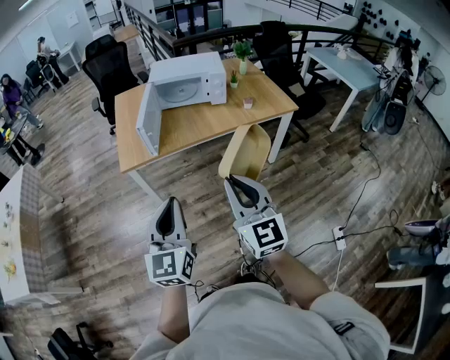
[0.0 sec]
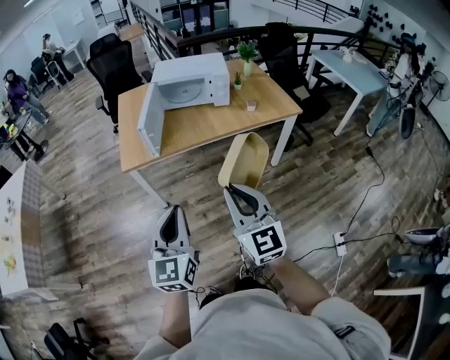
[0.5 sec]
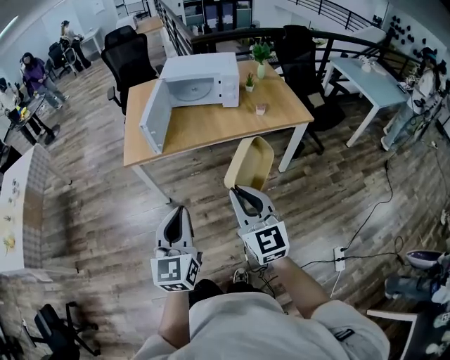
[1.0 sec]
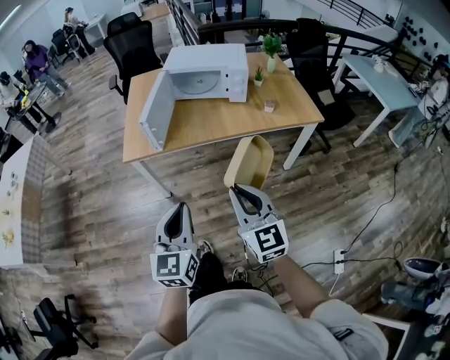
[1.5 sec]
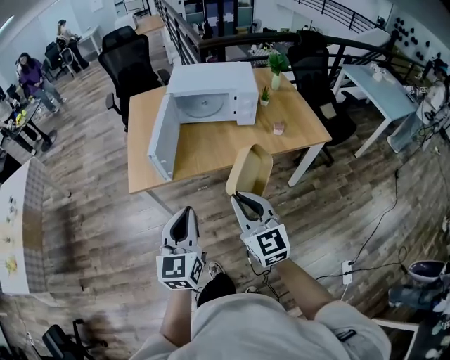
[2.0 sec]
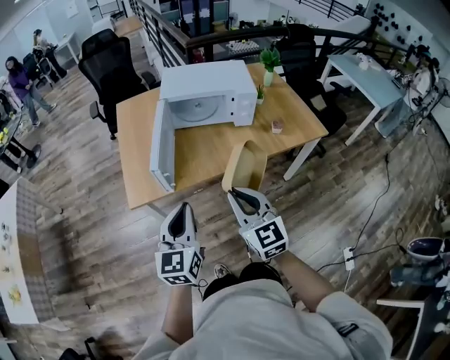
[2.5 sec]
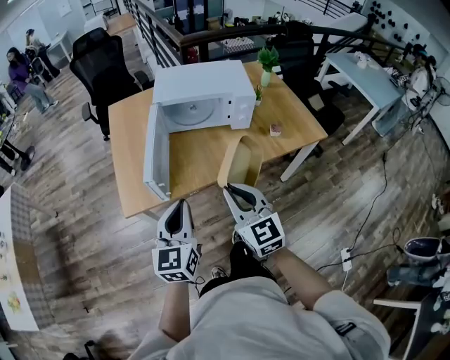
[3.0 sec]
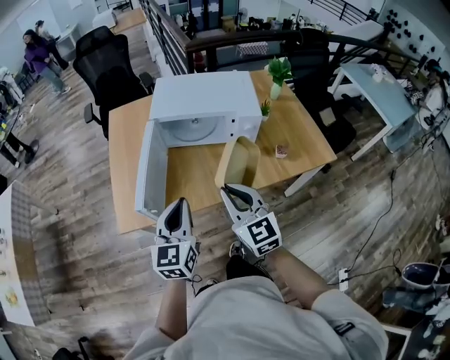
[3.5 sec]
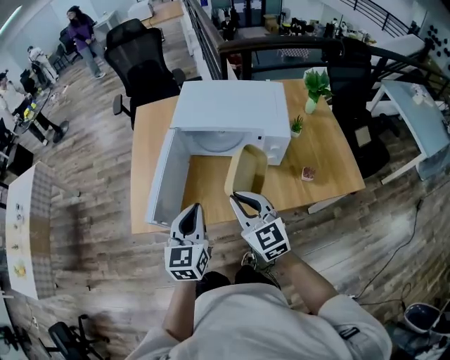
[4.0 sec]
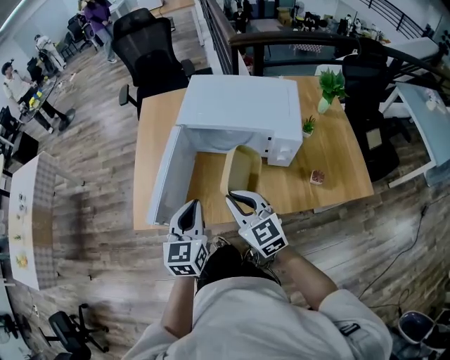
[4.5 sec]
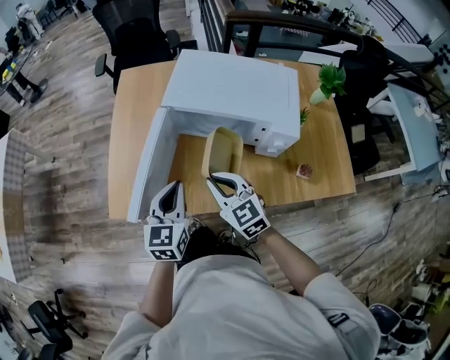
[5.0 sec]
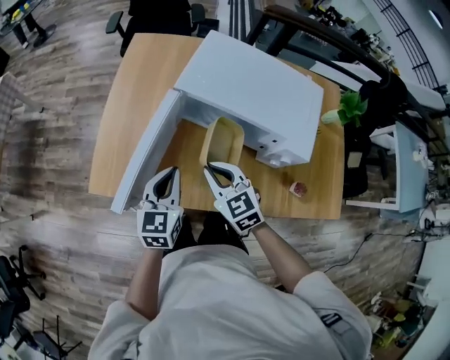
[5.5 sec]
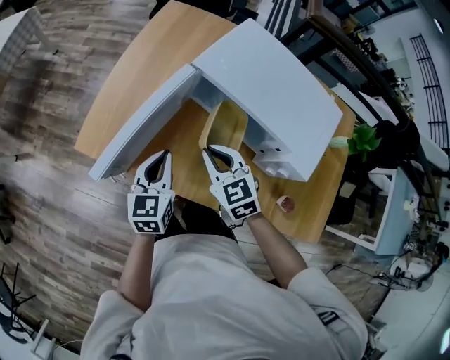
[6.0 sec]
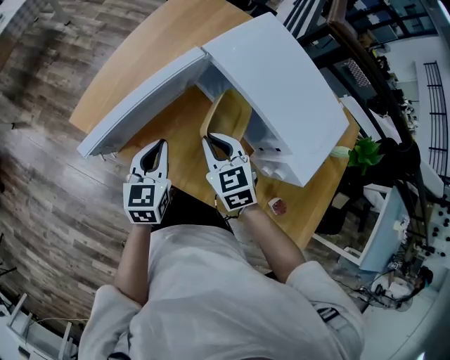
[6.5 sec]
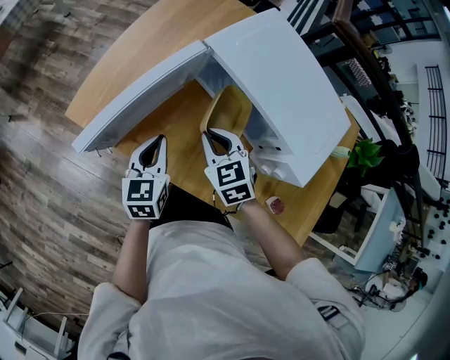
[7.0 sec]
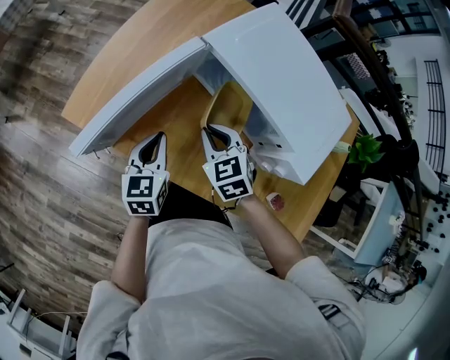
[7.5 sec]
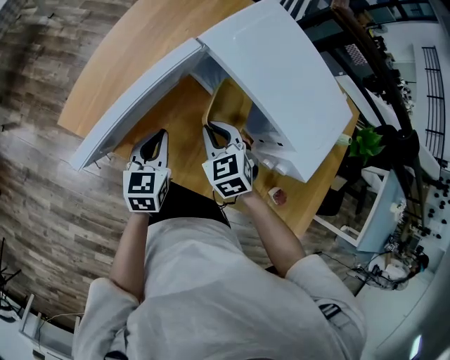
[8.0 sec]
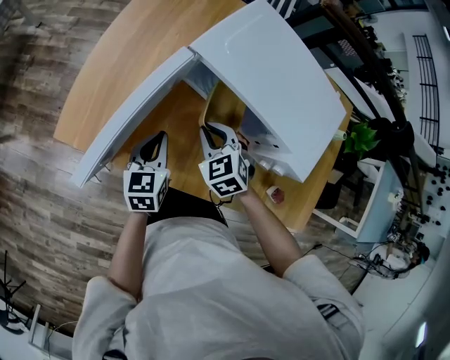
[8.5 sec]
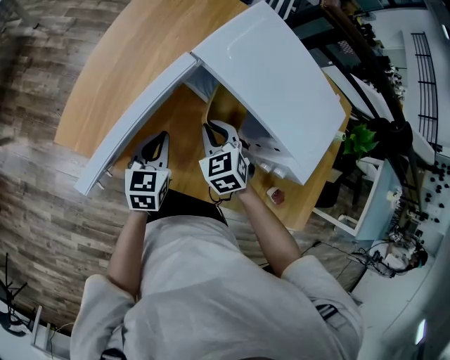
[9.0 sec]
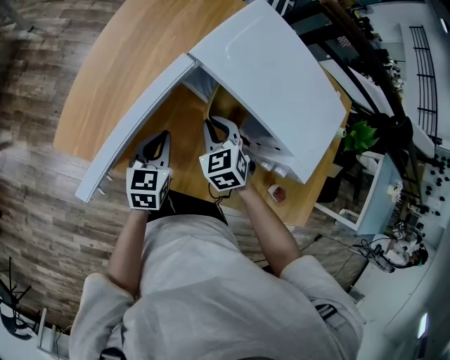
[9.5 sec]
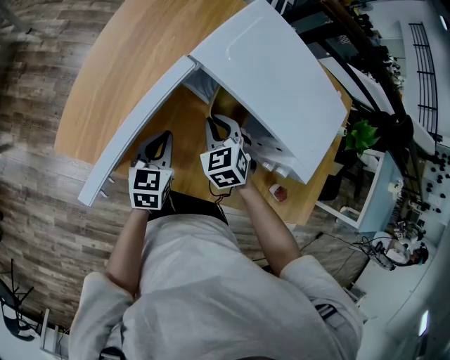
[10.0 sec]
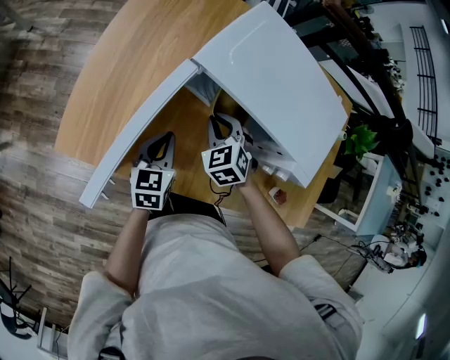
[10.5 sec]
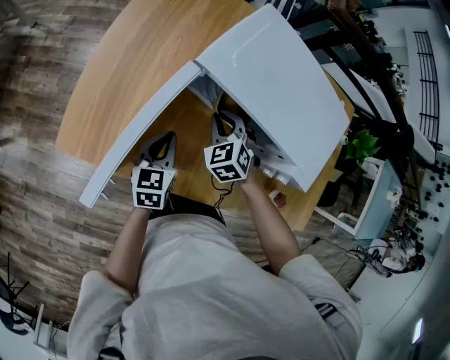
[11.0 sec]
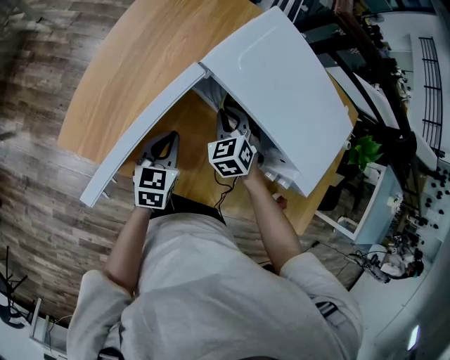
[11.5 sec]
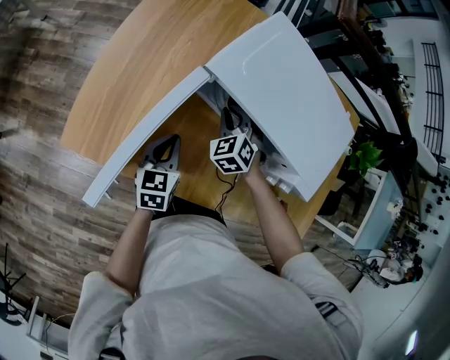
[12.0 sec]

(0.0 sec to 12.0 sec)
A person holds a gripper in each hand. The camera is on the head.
0.0 sec - 2.0 sec: The right gripper shifts about 20 cm forward and downward; the left gripper is displaced forward by approximately 20 cm.
2.0 sec - 4.0 sec: Both grippers move forward, about 30 cm.
4.0 sec - 6.0 sec: The right gripper travels forward and downward by some 20 cm, and rotates about 40 degrees, while the left gripper is displaced downward and forward by about 15 cm, and swivels some 30 degrees.
6.0 sec - 8.0 sec: Both grippers travel together downward, about 5 cm.
8.0 sec - 10.0 sec: The right gripper is displaced forward by some 5 cm.
10.0 sec - 12.0 sec: The right gripper travels forward by about 5 cm.

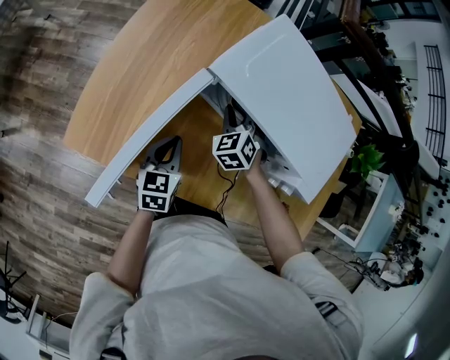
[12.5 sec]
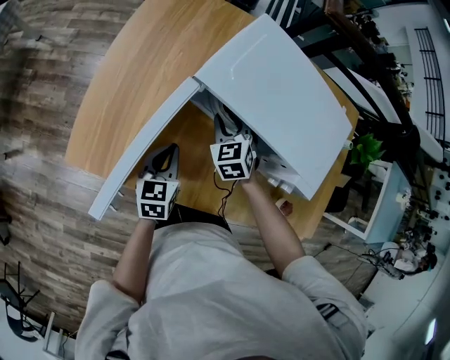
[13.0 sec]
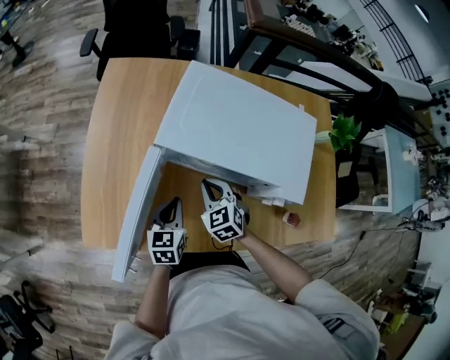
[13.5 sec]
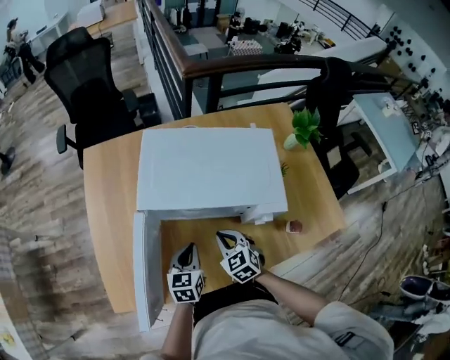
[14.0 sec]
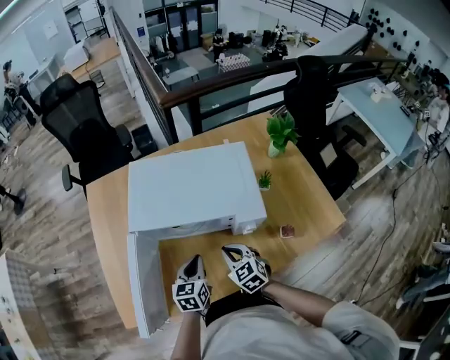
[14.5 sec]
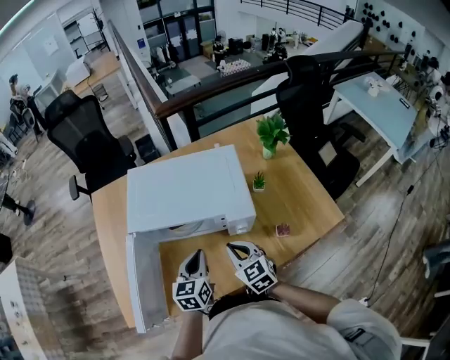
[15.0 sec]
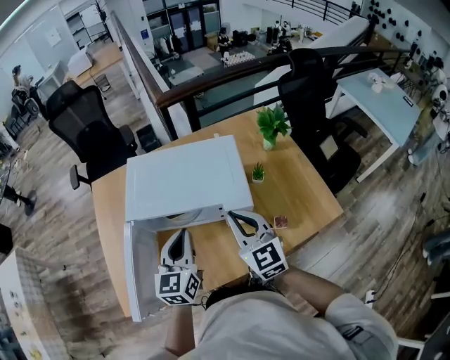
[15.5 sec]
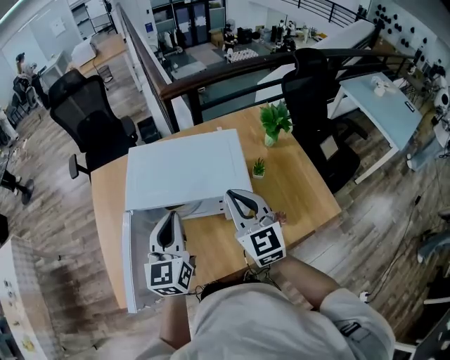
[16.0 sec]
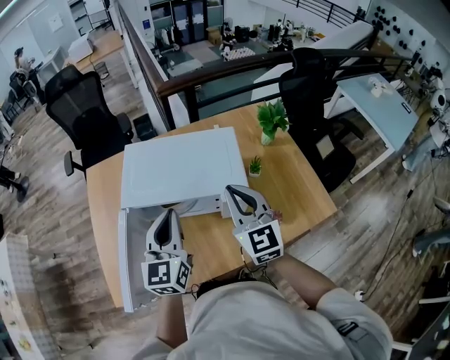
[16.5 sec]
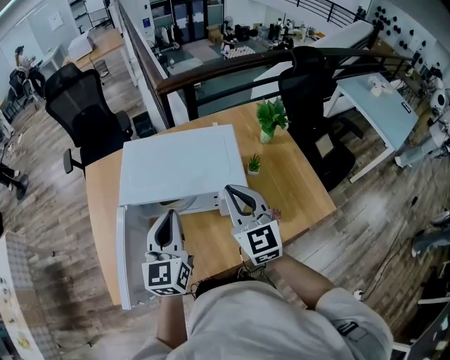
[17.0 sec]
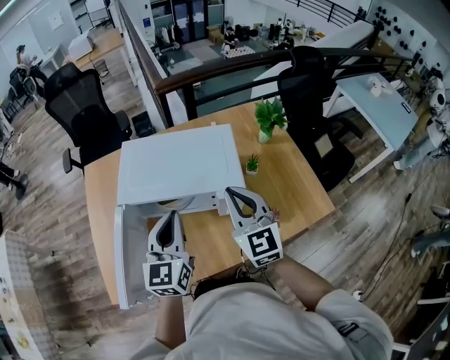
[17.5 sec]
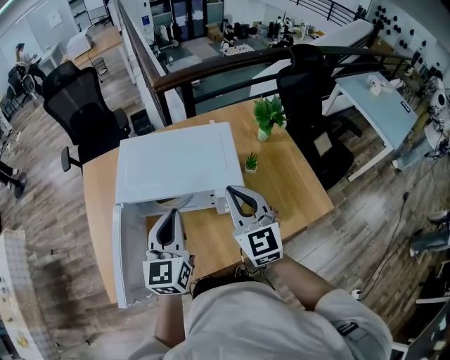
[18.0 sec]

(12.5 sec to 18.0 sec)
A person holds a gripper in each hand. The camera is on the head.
12.5 sec - 14.5 sec: The right gripper shifts approximately 20 cm backward and to the right, and rolls clockwise, seen from behind, by about 40 degrees; the left gripper heads to the right, covering roughly 15 cm, and turns by roughly 30 degrees.
14.5 sec - 16.0 sec: The grippers both shift upward by some 25 cm. The left gripper changes its angle by some 30 degrees; the right gripper points its fingers some 30 degrees further upward.
16.0 sec - 18.0 sec: The grippers move only a little.

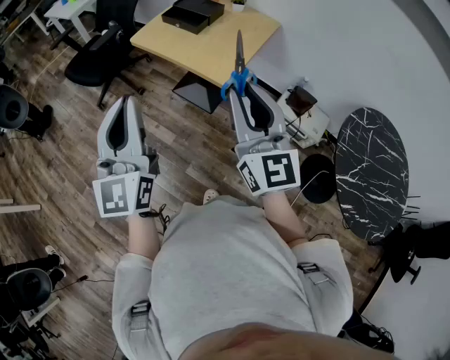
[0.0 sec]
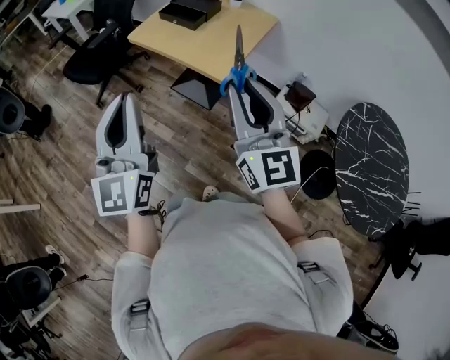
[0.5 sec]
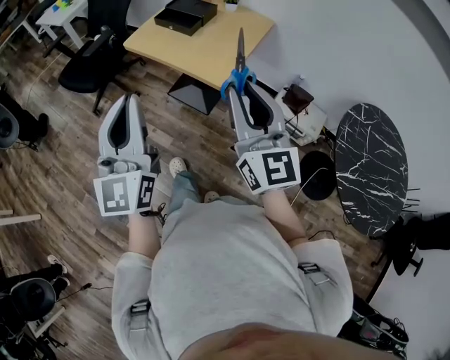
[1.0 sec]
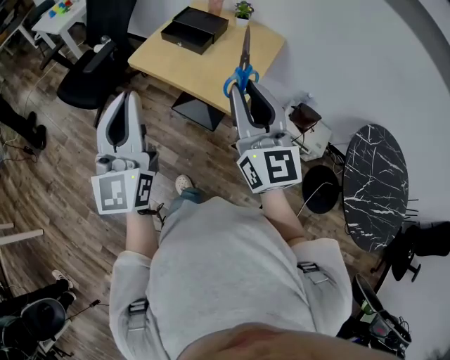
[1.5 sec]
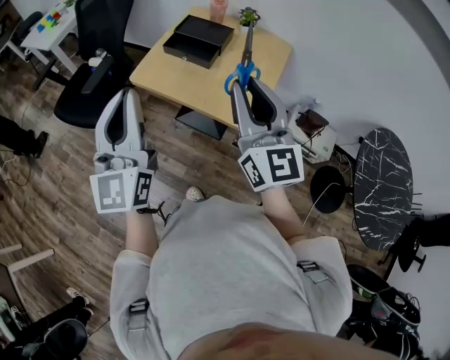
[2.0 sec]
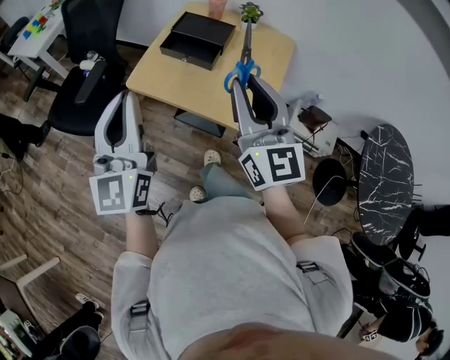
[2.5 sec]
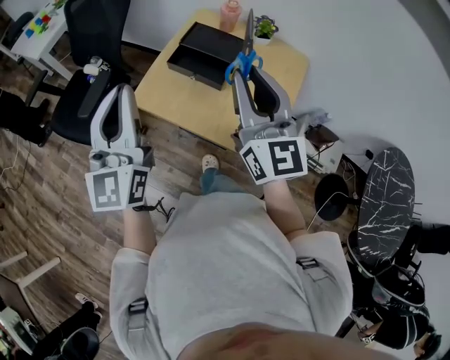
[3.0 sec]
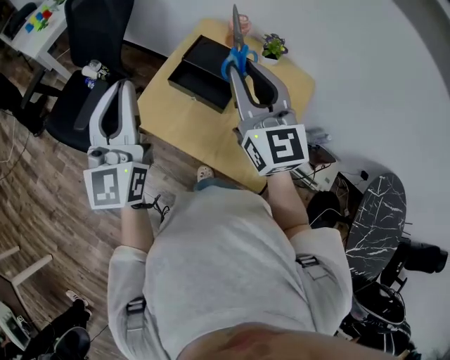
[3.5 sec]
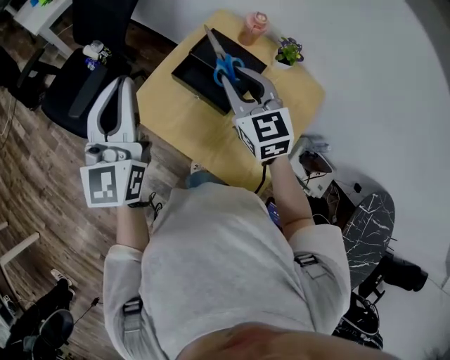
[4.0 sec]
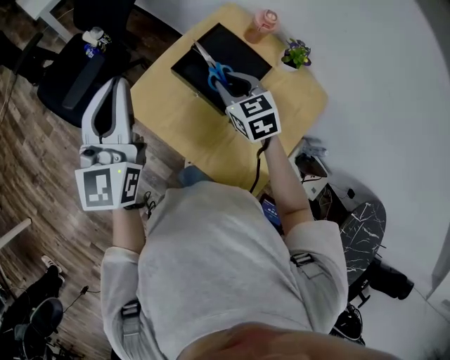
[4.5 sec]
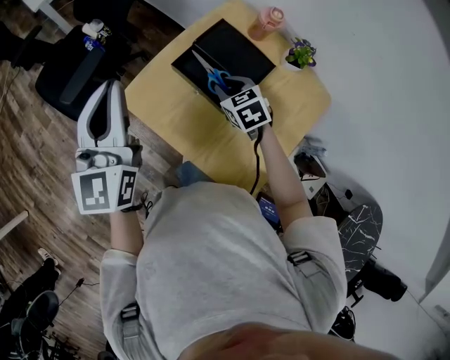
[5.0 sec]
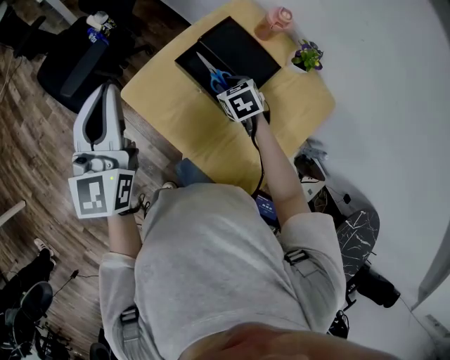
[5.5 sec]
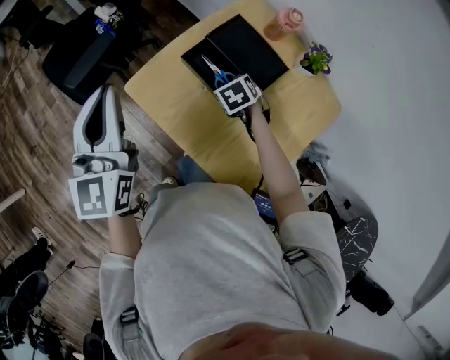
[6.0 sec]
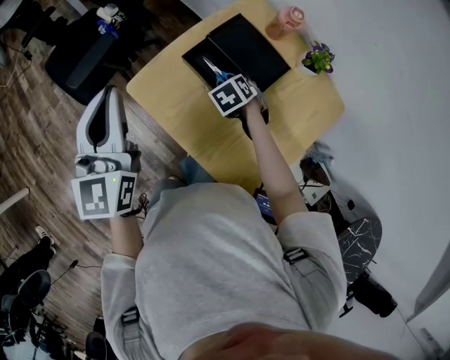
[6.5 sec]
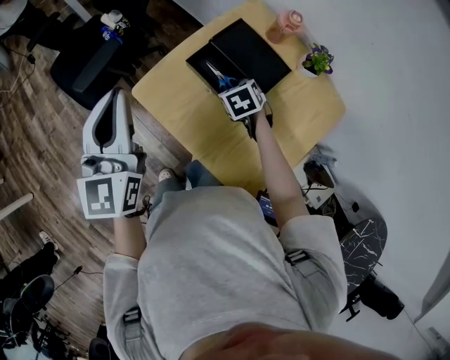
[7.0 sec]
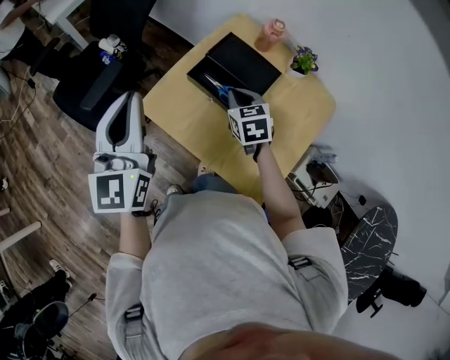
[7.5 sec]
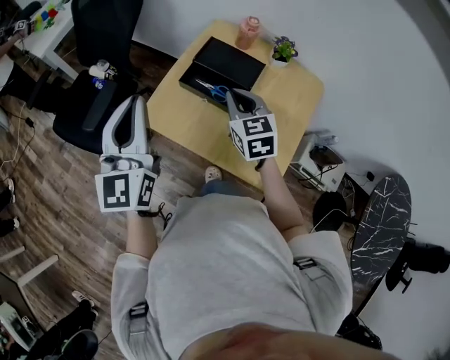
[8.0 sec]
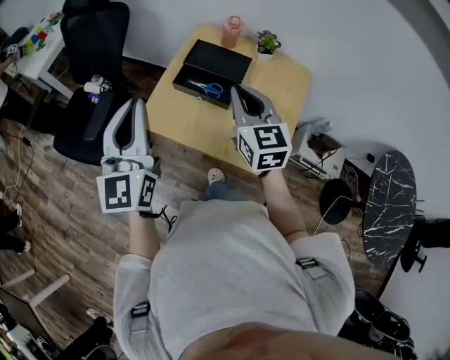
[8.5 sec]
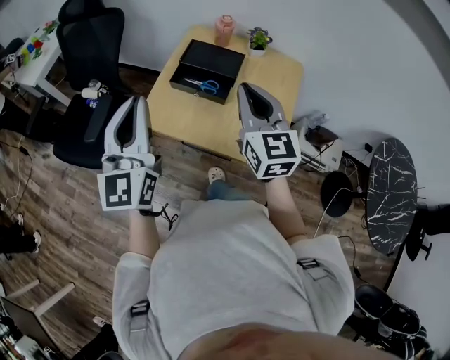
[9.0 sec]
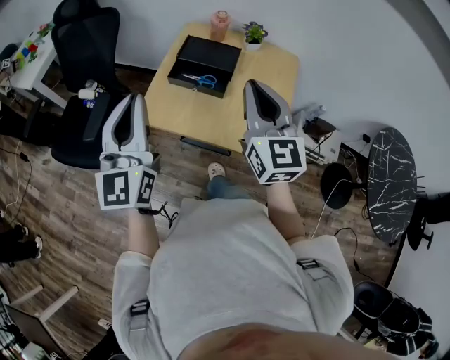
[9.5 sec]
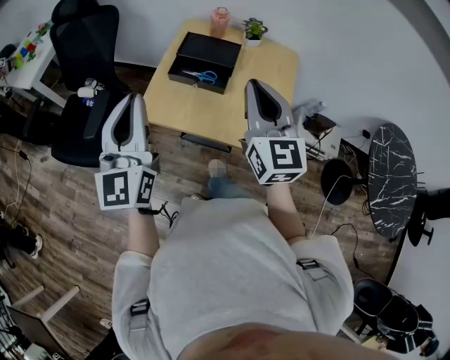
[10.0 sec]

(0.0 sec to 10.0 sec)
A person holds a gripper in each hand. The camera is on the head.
0.0 sec - 2.0 sec: Both grippers travel together forward, approximately 25 cm.
2.0 sec - 4.0 sec: The two grippers go roughly 35 cm forward. The right gripper angles its fingers downward, by roughly 30 degrees.
4.0 sec - 6.0 sec: The left gripper shifts approximately 5 cm downward. Meanwhile the right gripper goes some 30 cm downward, and tips its fingers downward by roughly 50 degrees.
6.0 sec - 8.0 sec: The right gripper is displaced upward by roughly 20 cm, and points its fingers approximately 40 degrees further upward; the left gripper moves upward, some 5 cm.
8.0 sec - 10.0 sec: The left gripper heads backward, covering approximately 5 cm; the right gripper heads backward and upward, covering about 20 cm, and turns by some 30 degrees.
